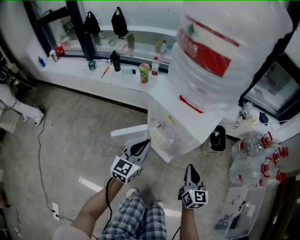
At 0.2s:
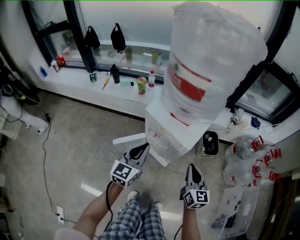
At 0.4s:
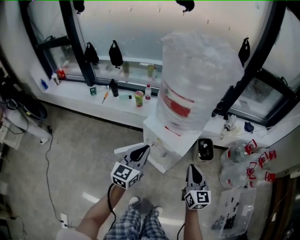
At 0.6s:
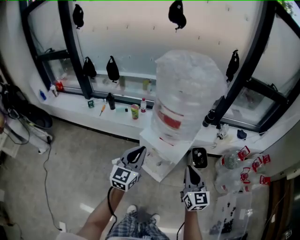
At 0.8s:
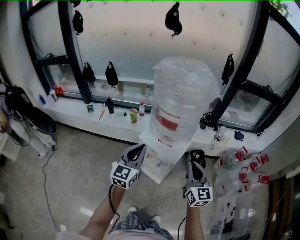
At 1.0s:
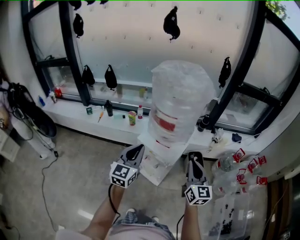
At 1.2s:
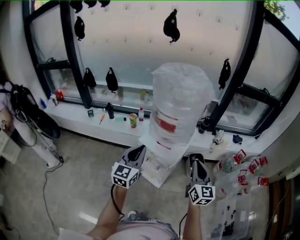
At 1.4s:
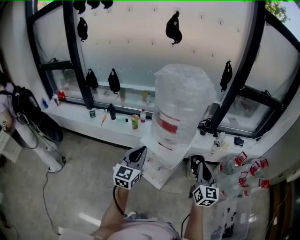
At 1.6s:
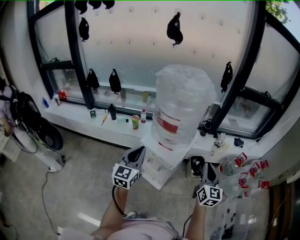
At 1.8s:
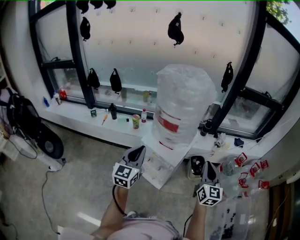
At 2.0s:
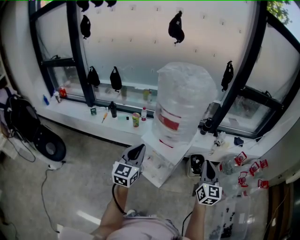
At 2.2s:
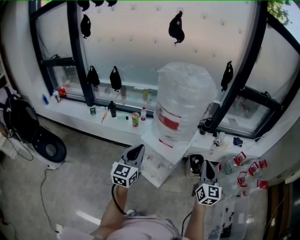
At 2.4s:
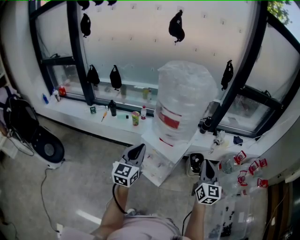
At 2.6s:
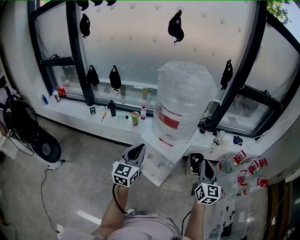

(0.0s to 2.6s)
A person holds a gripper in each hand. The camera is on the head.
0.0s - 1.2s: The two grippers go roughly 35 cm upward.
1.2s - 2.6s: The grippers stay close to where they were, moving slightly.

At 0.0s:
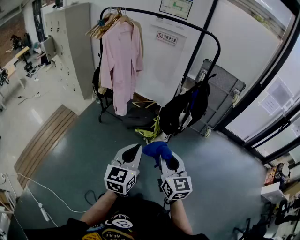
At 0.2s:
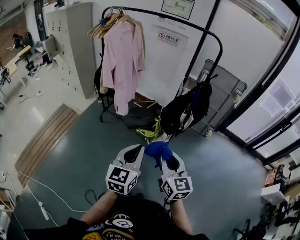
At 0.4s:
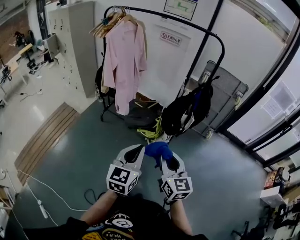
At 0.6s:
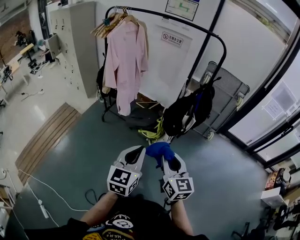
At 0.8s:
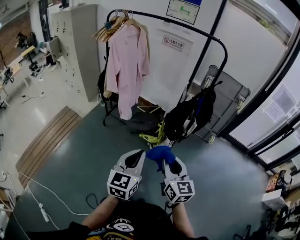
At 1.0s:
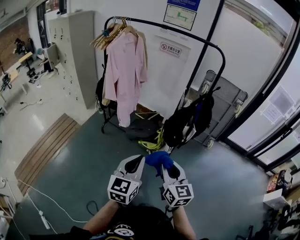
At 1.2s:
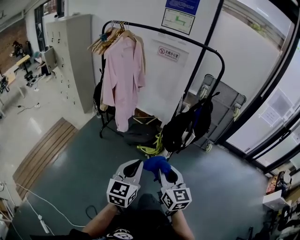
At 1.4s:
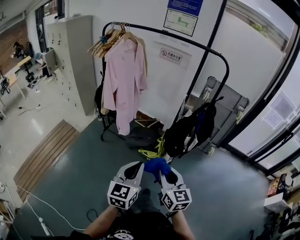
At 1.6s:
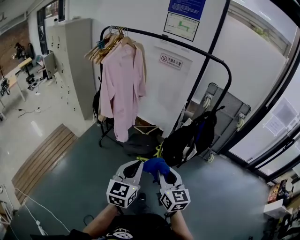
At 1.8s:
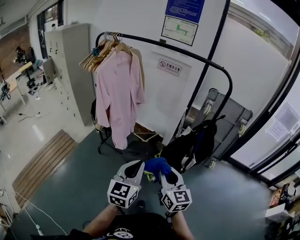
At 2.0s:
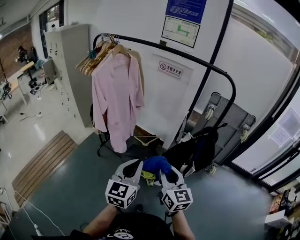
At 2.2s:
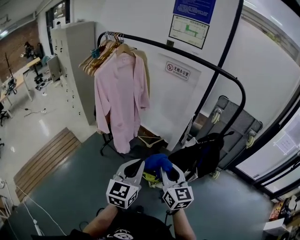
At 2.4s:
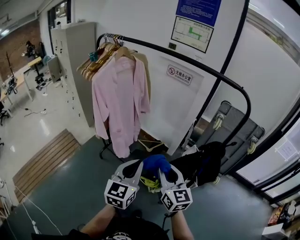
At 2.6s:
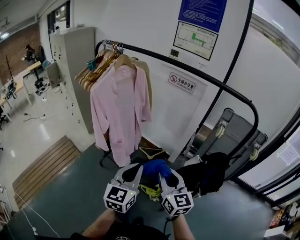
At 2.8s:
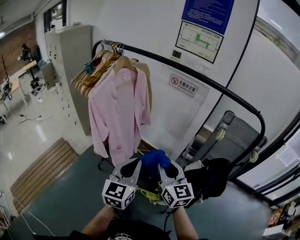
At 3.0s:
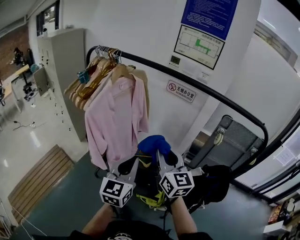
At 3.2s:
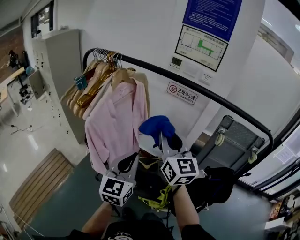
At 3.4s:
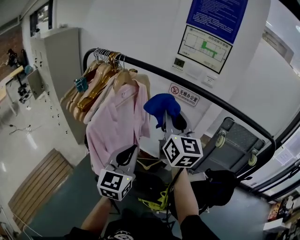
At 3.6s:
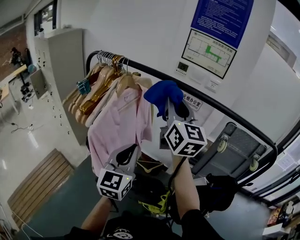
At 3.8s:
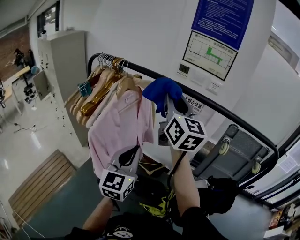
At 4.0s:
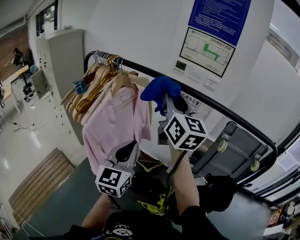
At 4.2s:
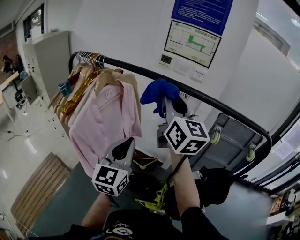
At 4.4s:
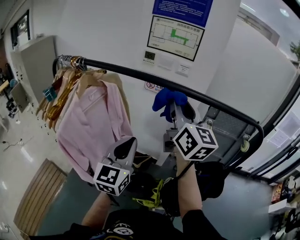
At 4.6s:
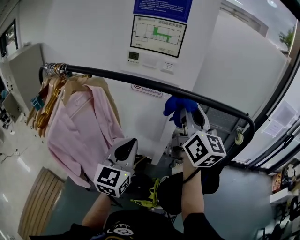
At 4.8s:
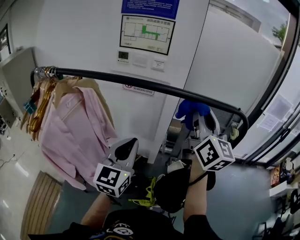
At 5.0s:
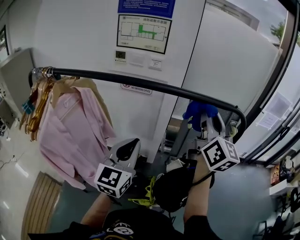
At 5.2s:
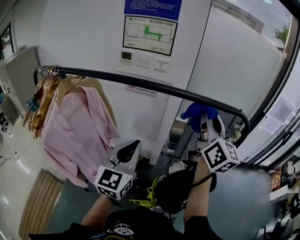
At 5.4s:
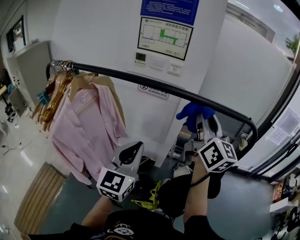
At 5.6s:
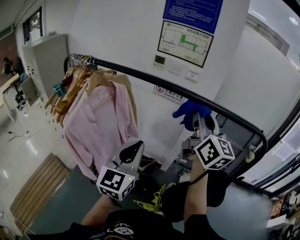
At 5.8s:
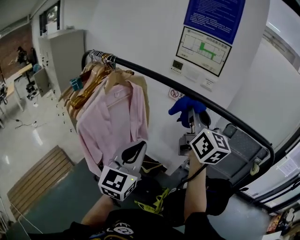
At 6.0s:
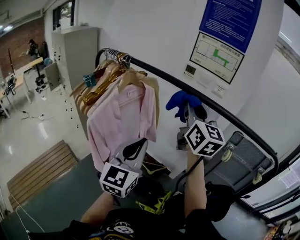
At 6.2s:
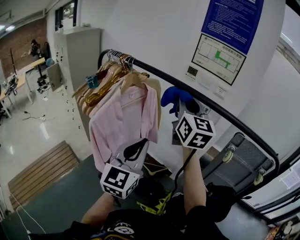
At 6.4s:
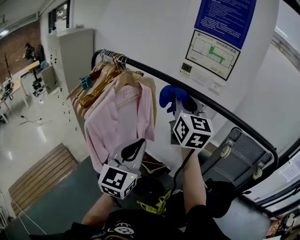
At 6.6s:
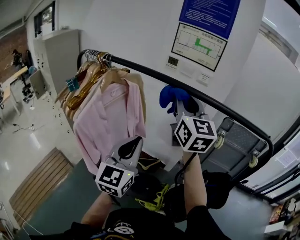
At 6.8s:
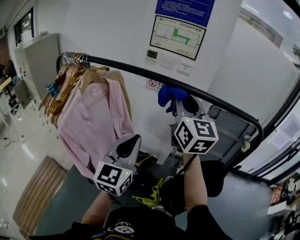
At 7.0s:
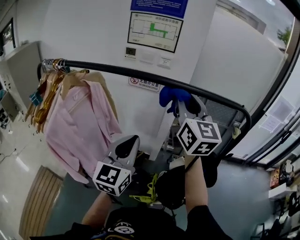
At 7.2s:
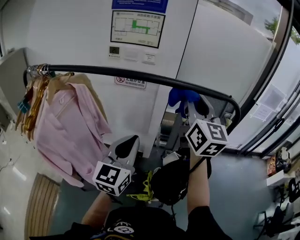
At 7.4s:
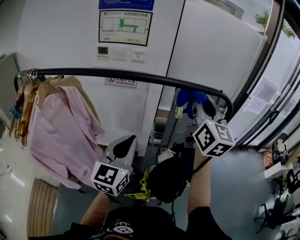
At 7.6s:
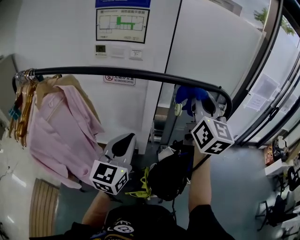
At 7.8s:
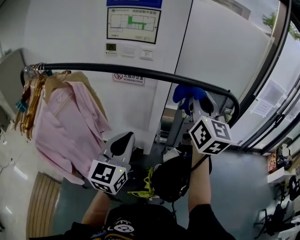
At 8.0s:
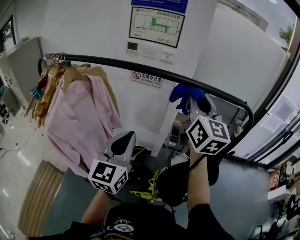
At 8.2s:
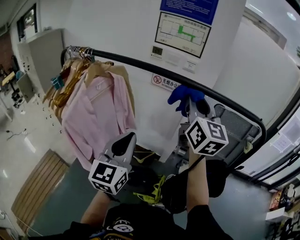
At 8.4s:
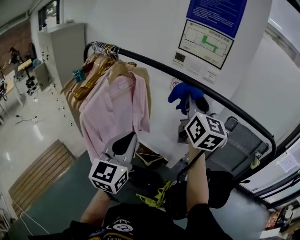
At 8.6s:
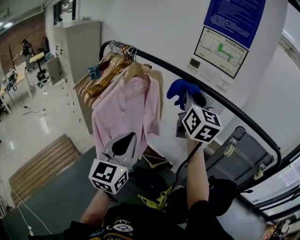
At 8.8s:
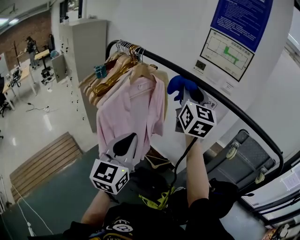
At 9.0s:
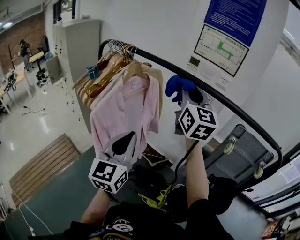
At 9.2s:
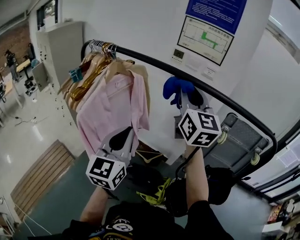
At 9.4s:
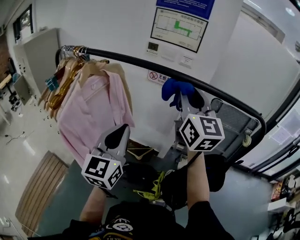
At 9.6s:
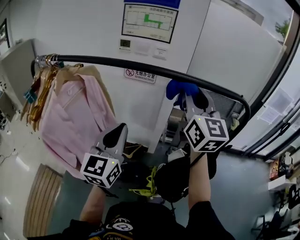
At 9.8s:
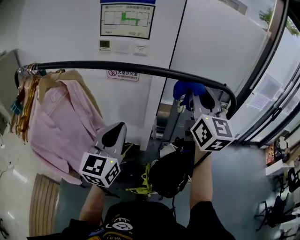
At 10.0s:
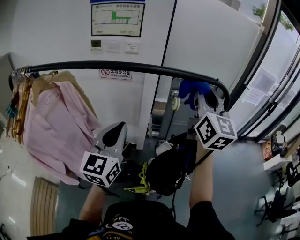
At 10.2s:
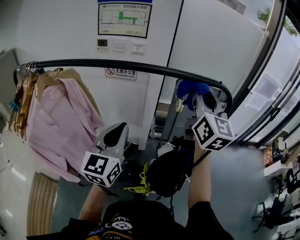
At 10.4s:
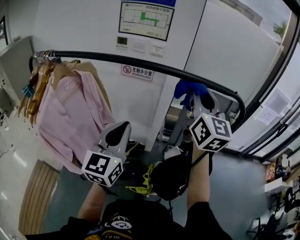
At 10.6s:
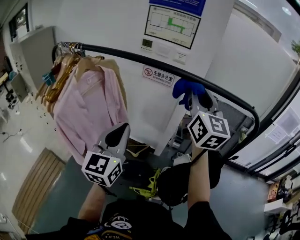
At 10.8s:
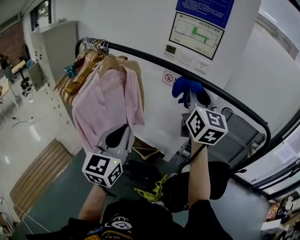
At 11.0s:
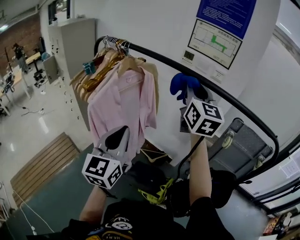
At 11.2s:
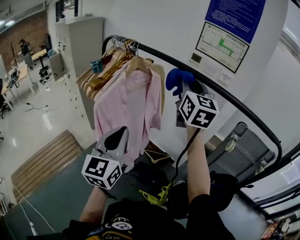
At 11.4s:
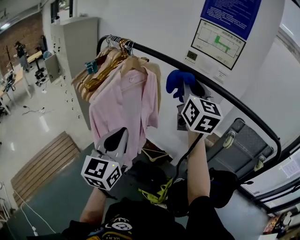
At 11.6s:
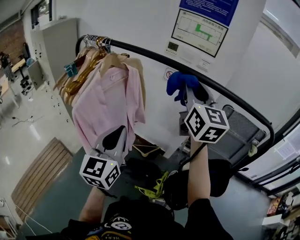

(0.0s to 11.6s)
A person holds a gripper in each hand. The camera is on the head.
0.0s - 1.4s: The two grippers go approximately 10 cm forward.
1.4s - 2.8s: Both grippers are carried forward, some 40 cm.
2.8s - 4.4s: The right gripper shifts about 35 cm upward and forward, and turns by approximately 30 degrees; the left gripper goes roughly 20 cm forward and upward.
4.4s - 5.8s: The right gripper reaches about 20 cm to the right, then returns. Meanwhile the left gripper reaches roughly 10 cm to the right, then returns.
5.8s - 7.2s: The left gripper moves some 15 cm, and turns by some 20 degrees. Meanwhile the right gripper shifts by some 20 cm, and changes its angle by some 30 degrees.
7.2s - 8.8s: The right gripper shifts by approximately 30 cm, and changes its angle by approximately 30 degrees; the left gripper shifts by about 25 cm, and changes its angle by about 30 degrees.
8.8s - 10.2s: The right gripper shifts by roughly 40 cm, and rotates about 30 degrees; the left gripper ends up some 25 cm from where it was, and rotates approximately 30 degrees.
10.2s - 11.6s: The right gripper shifts by some 25 cm, and swivels roughly 30 degrees; the left gripper shifts by some 20 cm, and turns by approximately 20 degrees.

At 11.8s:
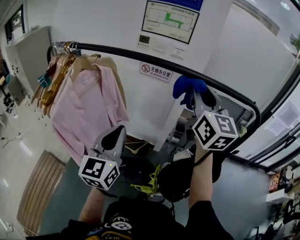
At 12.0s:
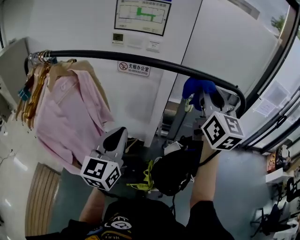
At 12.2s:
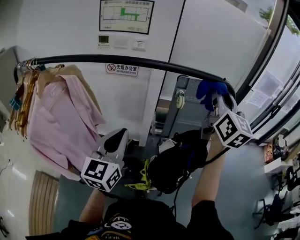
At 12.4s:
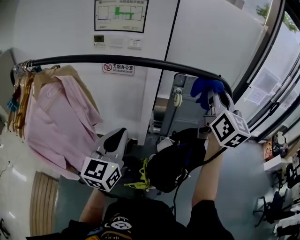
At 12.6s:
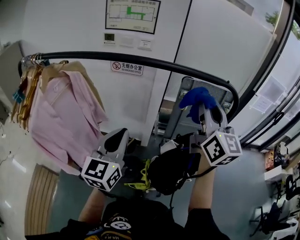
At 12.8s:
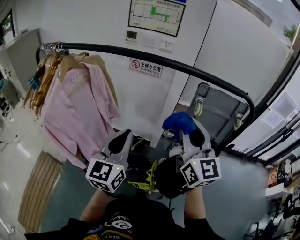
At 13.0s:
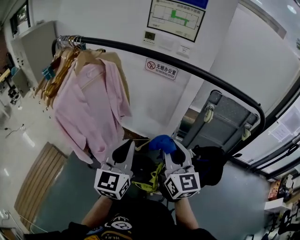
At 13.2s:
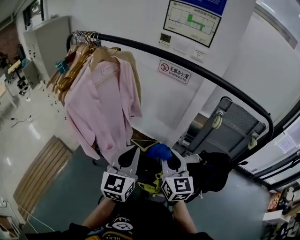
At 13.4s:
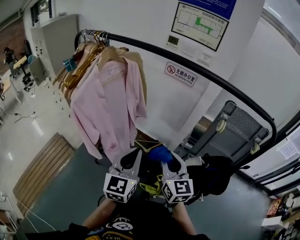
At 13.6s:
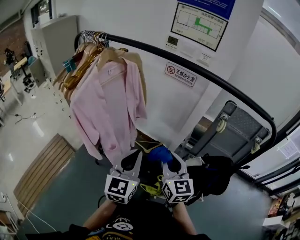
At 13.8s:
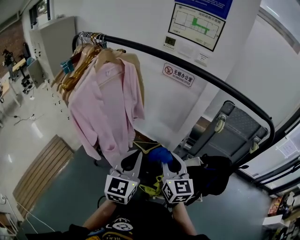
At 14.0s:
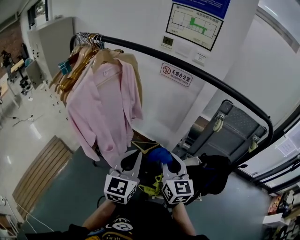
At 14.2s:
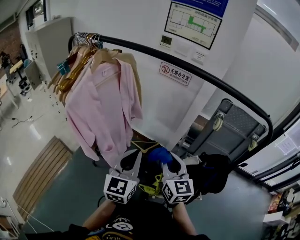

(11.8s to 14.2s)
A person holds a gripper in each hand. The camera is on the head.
11.8s - 13.0s: The left gripper heads downward, covering approximately 5 cm. The right gripper shifts some 25 cm downward and backward, and reaches some 20 cm to the right, then returns.
13.0s - 14.2s: The right gripper moves downward, some 5 cm.

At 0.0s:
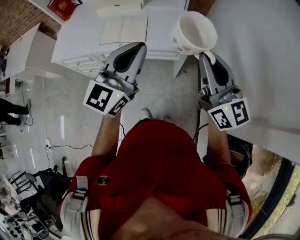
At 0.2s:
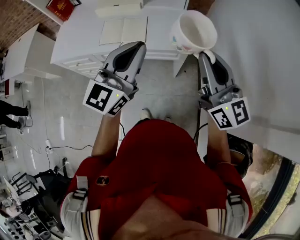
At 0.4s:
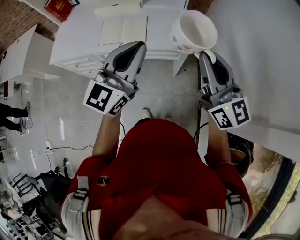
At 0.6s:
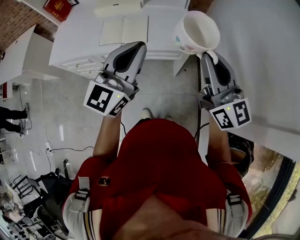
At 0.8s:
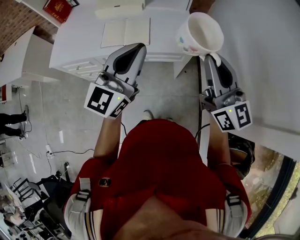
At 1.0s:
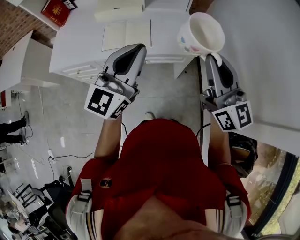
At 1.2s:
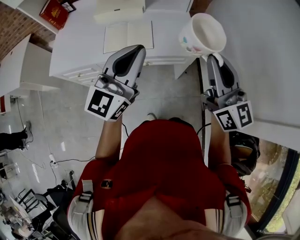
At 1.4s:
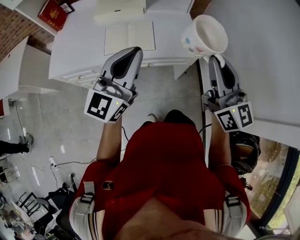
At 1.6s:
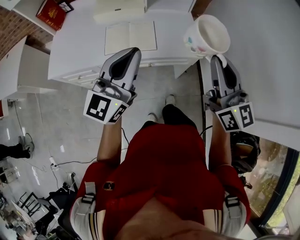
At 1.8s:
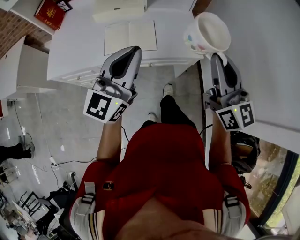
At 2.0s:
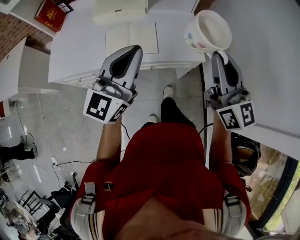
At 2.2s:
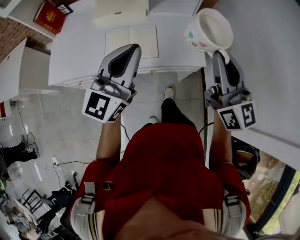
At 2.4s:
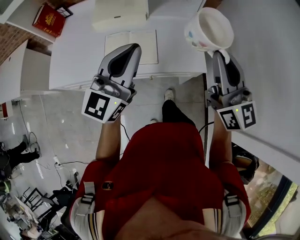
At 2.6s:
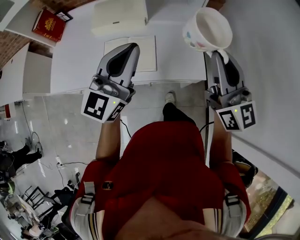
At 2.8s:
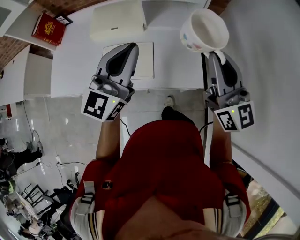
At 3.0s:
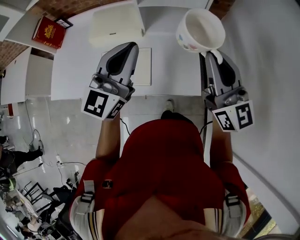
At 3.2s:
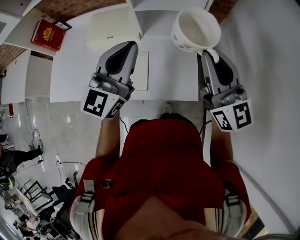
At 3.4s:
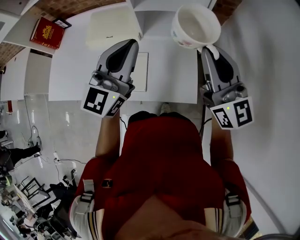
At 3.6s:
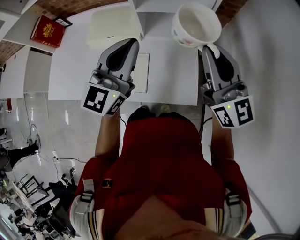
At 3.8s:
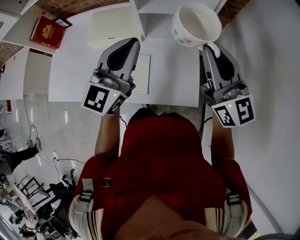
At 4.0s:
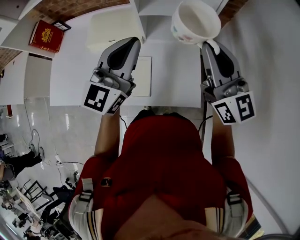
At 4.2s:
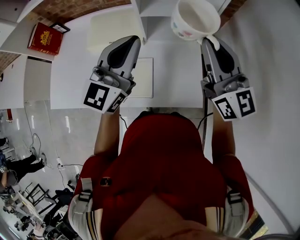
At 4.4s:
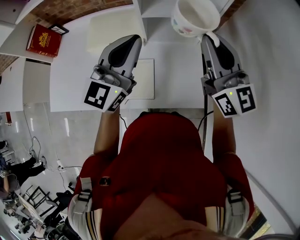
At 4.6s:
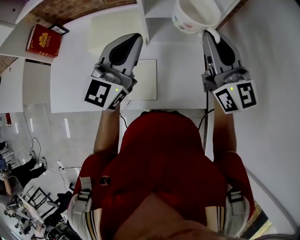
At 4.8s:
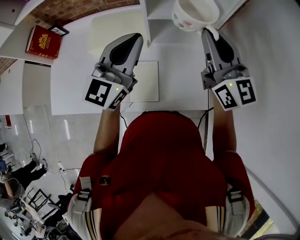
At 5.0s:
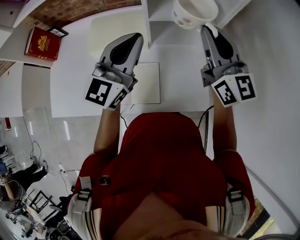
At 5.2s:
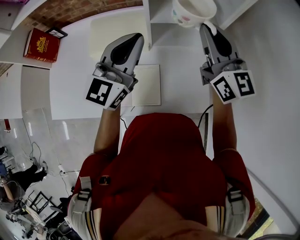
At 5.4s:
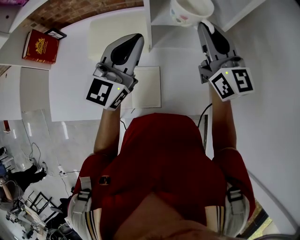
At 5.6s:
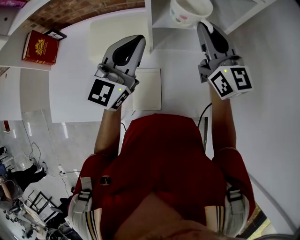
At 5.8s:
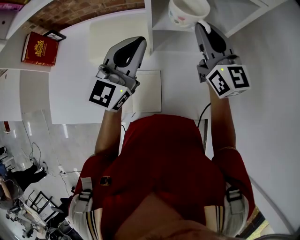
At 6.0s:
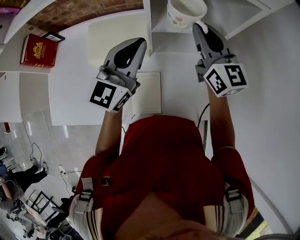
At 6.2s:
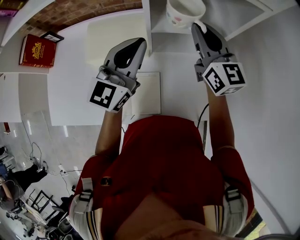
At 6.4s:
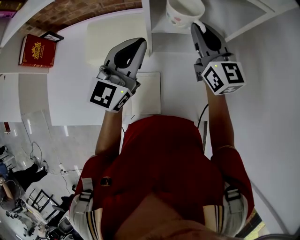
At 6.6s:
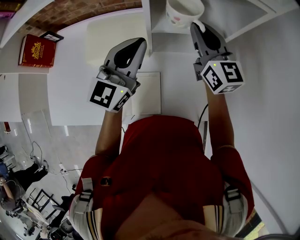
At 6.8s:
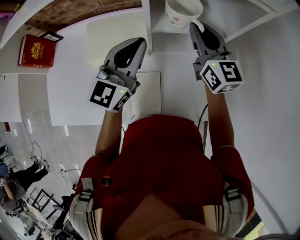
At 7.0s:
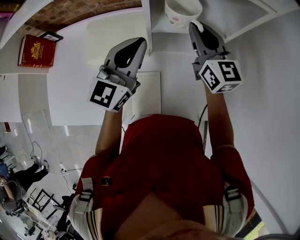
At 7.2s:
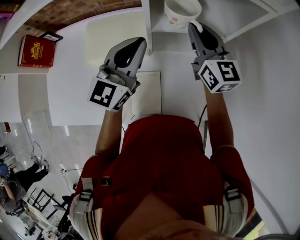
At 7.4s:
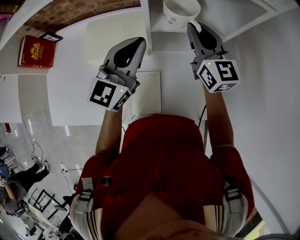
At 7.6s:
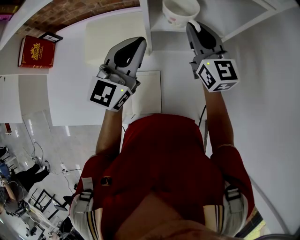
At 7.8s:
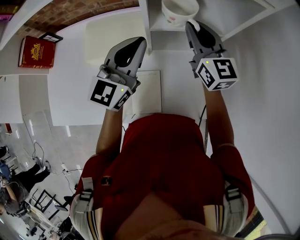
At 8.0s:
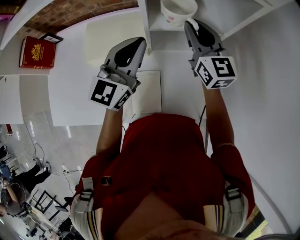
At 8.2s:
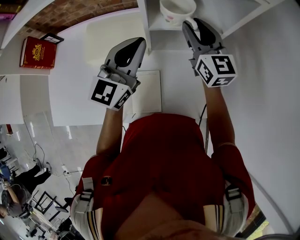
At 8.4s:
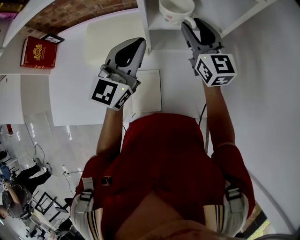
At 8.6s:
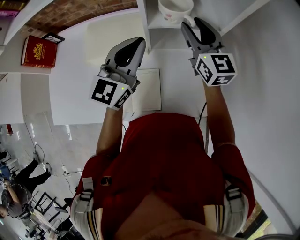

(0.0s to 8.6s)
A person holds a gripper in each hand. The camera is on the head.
0.0s - 1.4s: Both grippers move to the left, approximately 10 cm.
1.4s - 2.8s: Both grippers move forward, approximately 20 cm.
2.8s - 4.4s: The two grippers go about 15 cm forward.
4.4s - 5.8s: Both grippers travel together forward and to the left, roughly 15 cm.
5.8s - 7.2s: The right gripper ends up approximately 5 cm from where it was.
7.2s - 8.6s: The right gripper opens its fingers.
